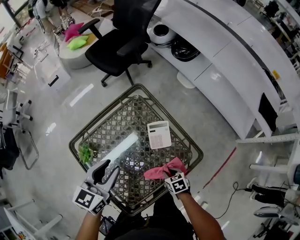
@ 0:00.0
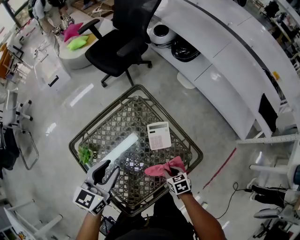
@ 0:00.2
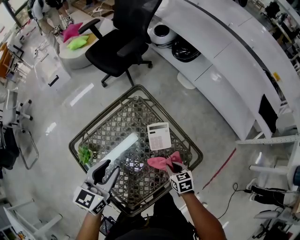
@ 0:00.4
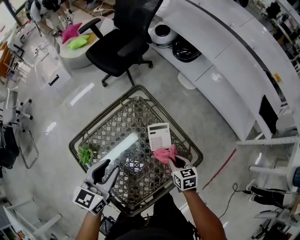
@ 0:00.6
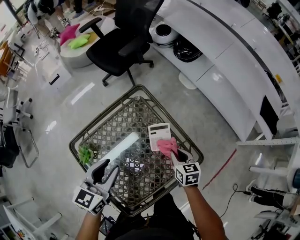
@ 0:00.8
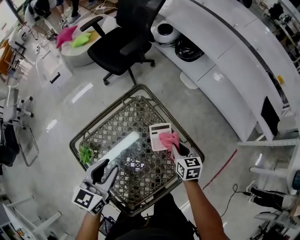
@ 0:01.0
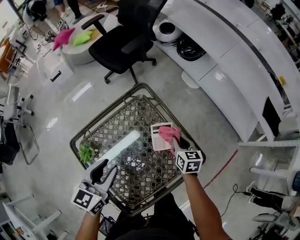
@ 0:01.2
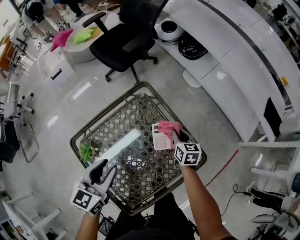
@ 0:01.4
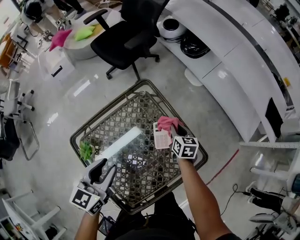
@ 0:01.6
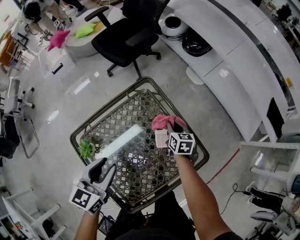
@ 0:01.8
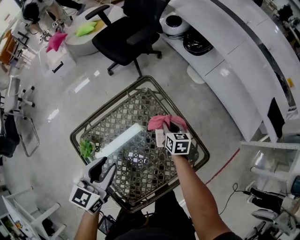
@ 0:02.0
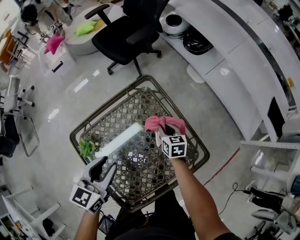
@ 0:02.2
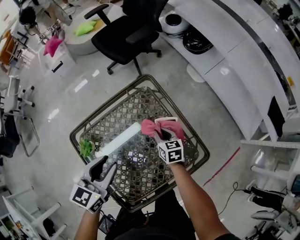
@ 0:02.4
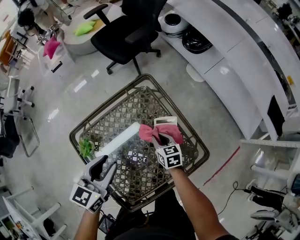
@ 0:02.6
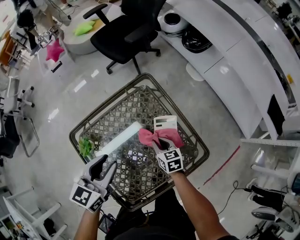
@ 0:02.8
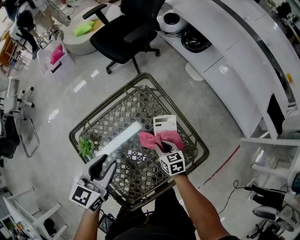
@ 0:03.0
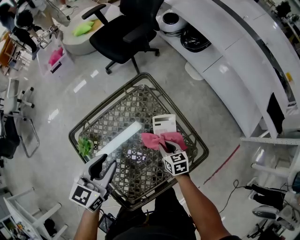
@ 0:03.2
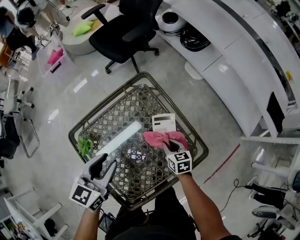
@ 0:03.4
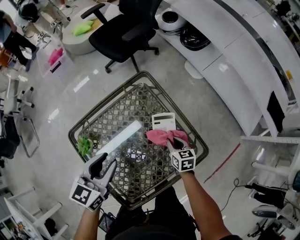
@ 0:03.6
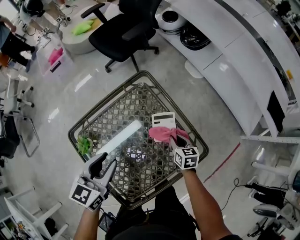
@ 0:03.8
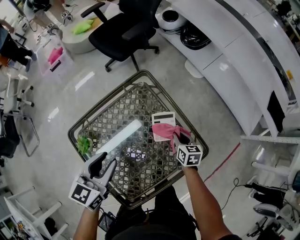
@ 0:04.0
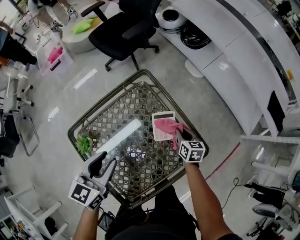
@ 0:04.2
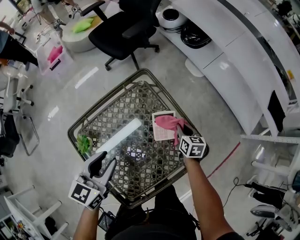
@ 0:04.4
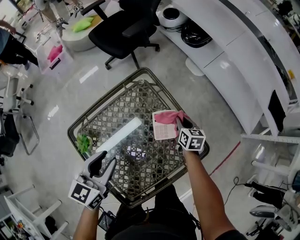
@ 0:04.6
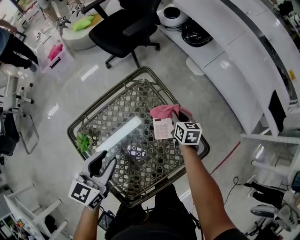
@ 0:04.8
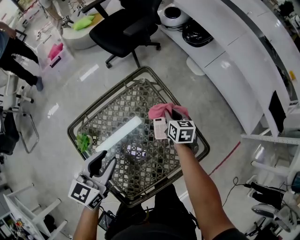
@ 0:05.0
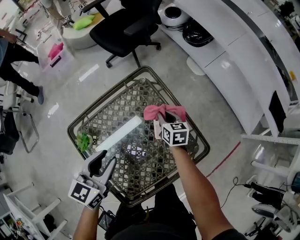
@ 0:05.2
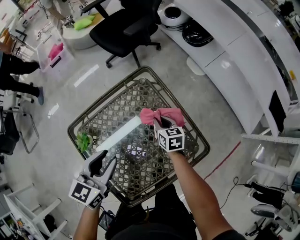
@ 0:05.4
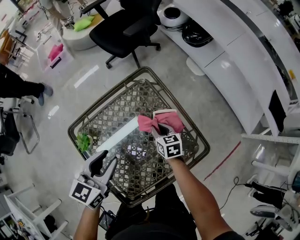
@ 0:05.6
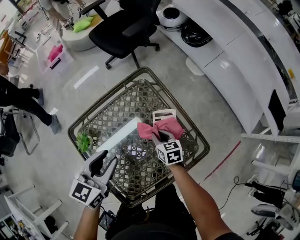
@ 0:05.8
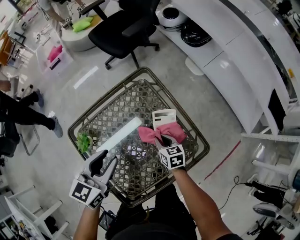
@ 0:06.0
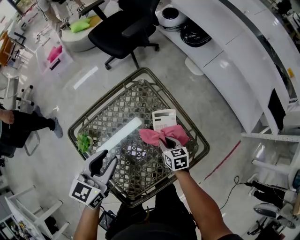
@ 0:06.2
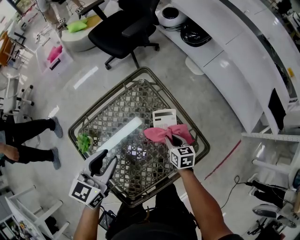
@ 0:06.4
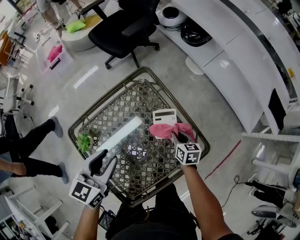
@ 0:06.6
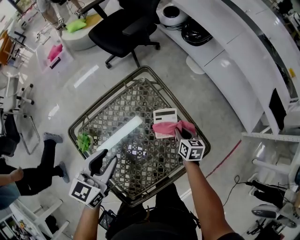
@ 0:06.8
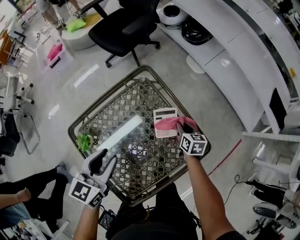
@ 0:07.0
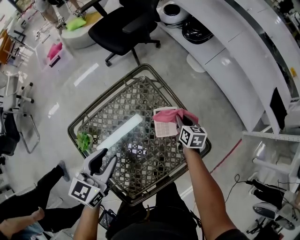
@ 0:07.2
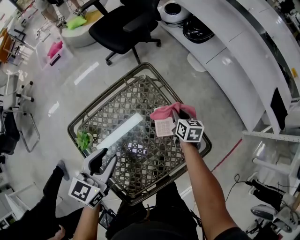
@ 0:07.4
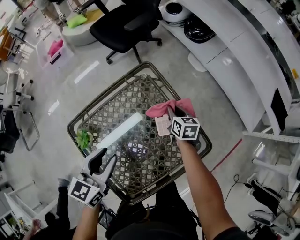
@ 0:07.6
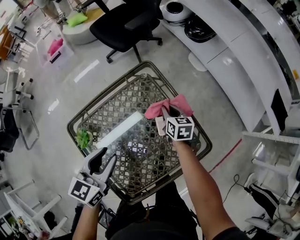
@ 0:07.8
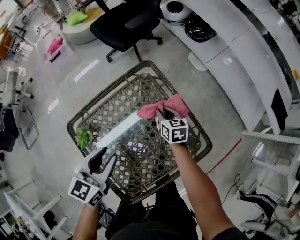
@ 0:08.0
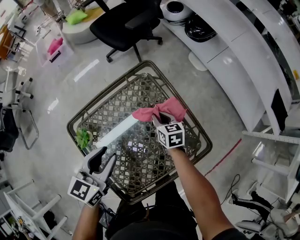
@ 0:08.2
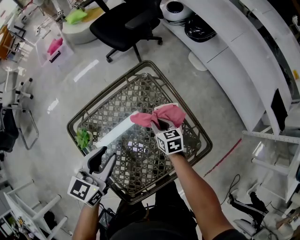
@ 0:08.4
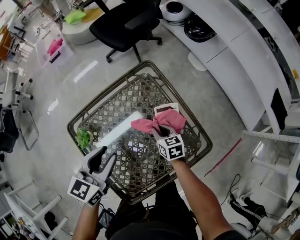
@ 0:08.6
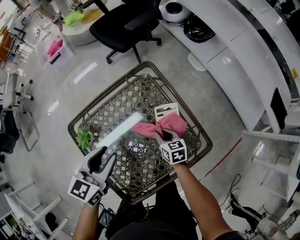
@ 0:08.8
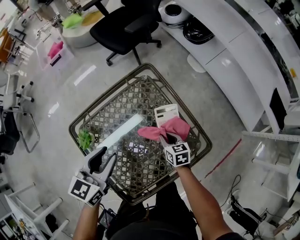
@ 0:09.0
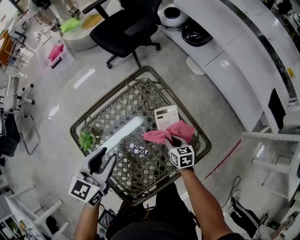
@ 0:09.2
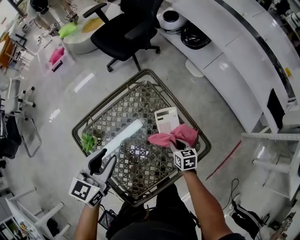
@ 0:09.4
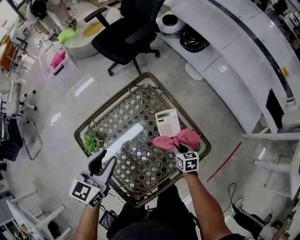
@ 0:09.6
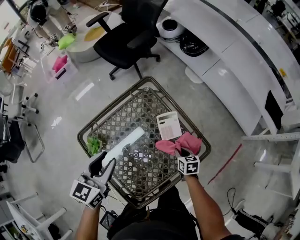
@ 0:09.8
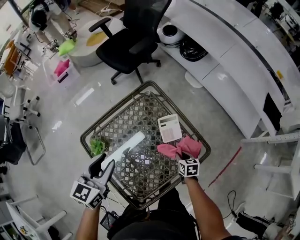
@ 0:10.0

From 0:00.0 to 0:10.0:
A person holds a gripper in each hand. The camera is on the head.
From 0:00.0 to 0:01.4: The right gripper goes about 25 cm forward and upward, and changes its angle by approximately 30 degrees.
From 0:01.4 to 0:02.8: The right gripper shifts about 15 cm to the left, backward and downward, and turns by approximately 20 degrees.
From 0:02.8 to 0:04.2: The right gripper shifts roughly 15 cm to the right, and swivels some 20 degrees.
From 0:04.2 to 0:05.8: The right gripper is displaced to the left by approximately 15 cm.
From 0:05.8 to 0:07.2: The right gripper is displaced to the right and forward by some 15 cm.
From 0:07.2 to 0:08.6: The right gripper moves to the left and backward, approximately 15 cm, and changes its angle by approximately 20 degrees.
From 0:08.6 to 0:10.0: The left gripper heads upward, covering approximately 5 cm, while the right gripper shifts some 15 cm to the right and backward.

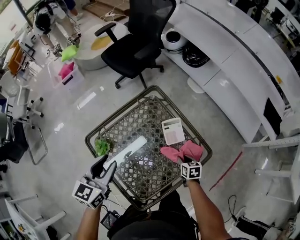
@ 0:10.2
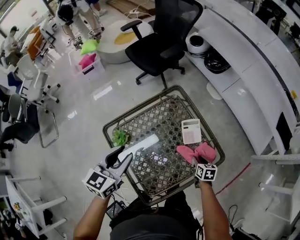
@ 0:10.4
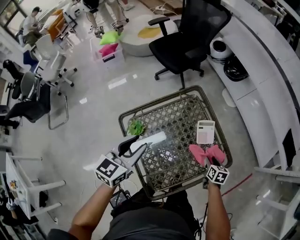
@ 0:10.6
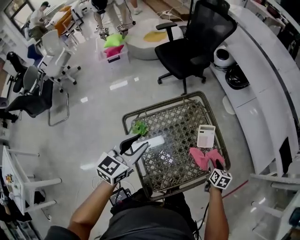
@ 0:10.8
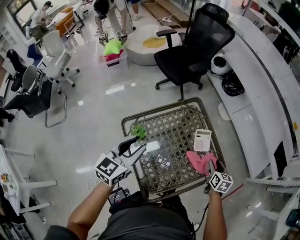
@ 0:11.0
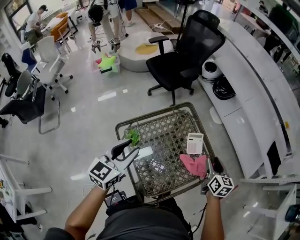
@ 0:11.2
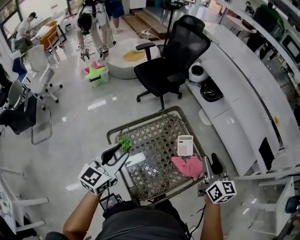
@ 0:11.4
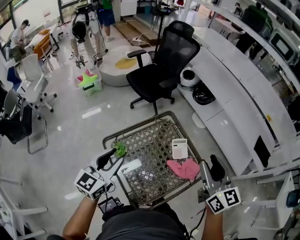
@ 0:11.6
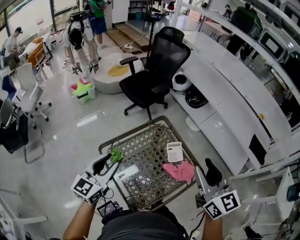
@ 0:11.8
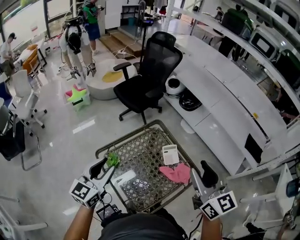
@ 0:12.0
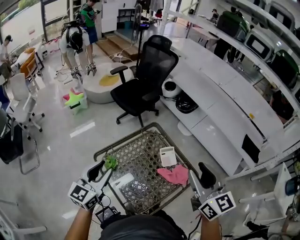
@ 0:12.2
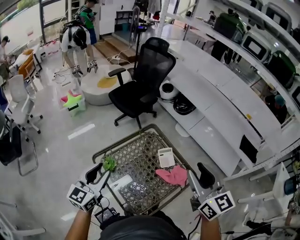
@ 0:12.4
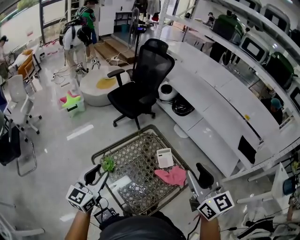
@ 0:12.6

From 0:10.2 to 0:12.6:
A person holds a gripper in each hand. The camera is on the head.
From 0:10.2 to 0:11.4: The right gripper moves upward, approximately 40 cm, tips its fingers upward by some 40 degrees, and opens its fingers. Meanwhile the left gripper shifts about 10 cm upward and to the left.
From 0:11.4 to 0:12.6: The right gripper is displaced upward and backward by roughly 15 cm.

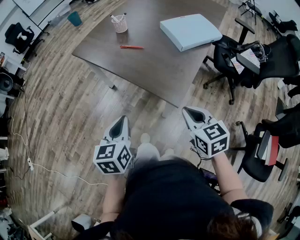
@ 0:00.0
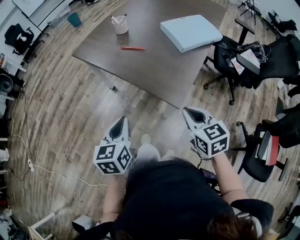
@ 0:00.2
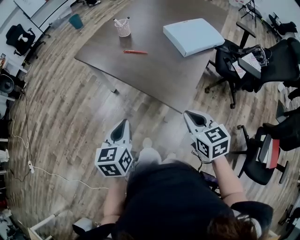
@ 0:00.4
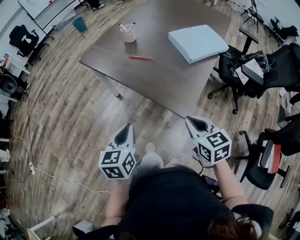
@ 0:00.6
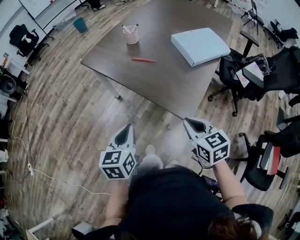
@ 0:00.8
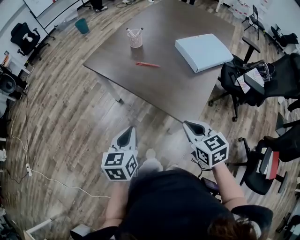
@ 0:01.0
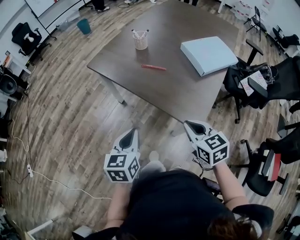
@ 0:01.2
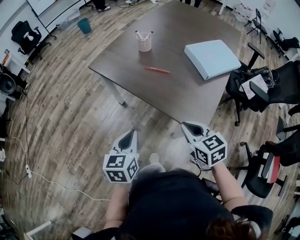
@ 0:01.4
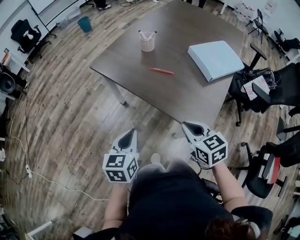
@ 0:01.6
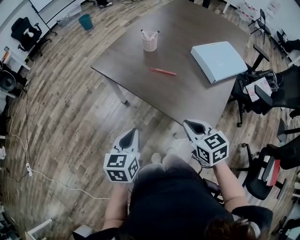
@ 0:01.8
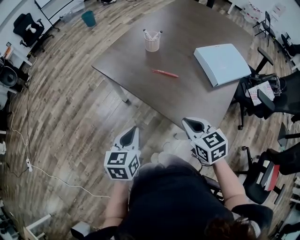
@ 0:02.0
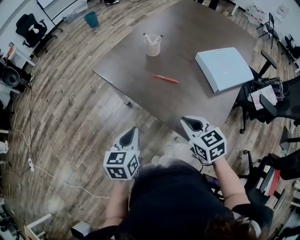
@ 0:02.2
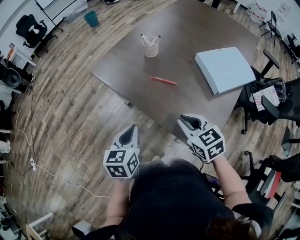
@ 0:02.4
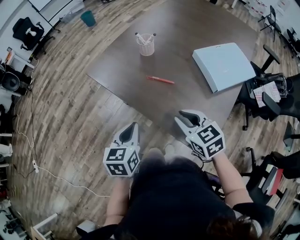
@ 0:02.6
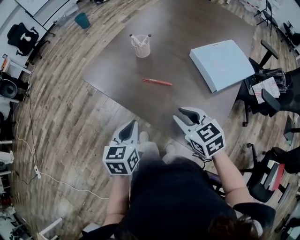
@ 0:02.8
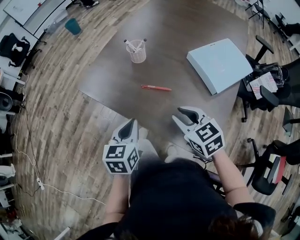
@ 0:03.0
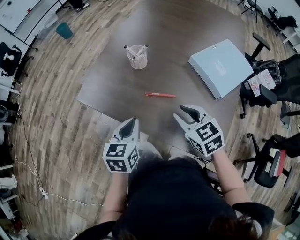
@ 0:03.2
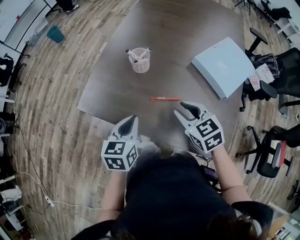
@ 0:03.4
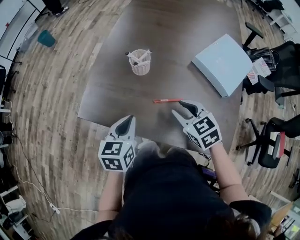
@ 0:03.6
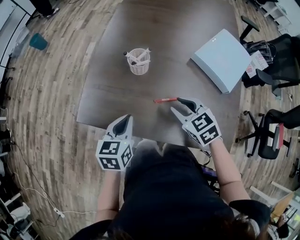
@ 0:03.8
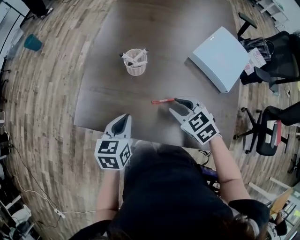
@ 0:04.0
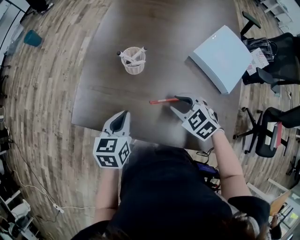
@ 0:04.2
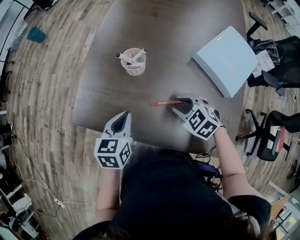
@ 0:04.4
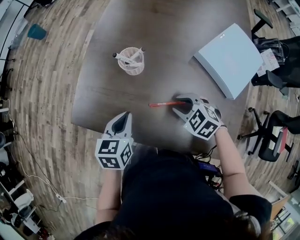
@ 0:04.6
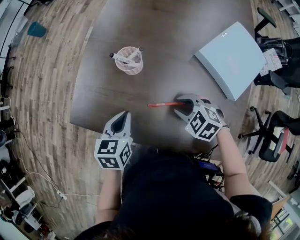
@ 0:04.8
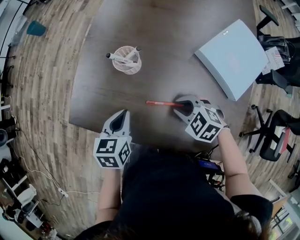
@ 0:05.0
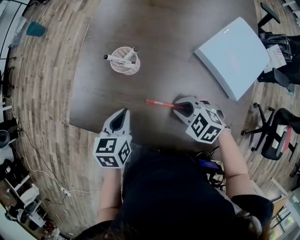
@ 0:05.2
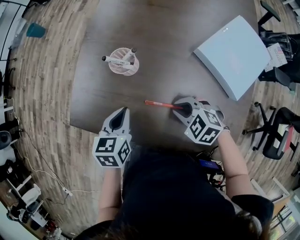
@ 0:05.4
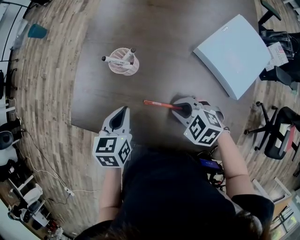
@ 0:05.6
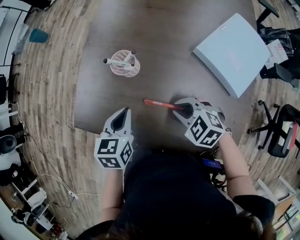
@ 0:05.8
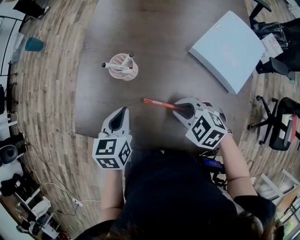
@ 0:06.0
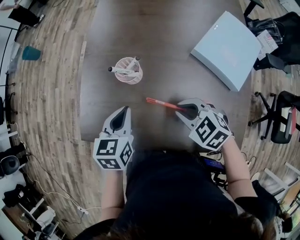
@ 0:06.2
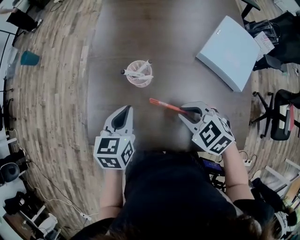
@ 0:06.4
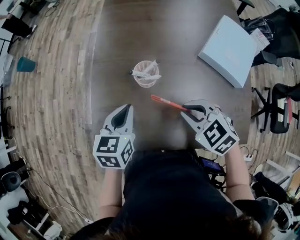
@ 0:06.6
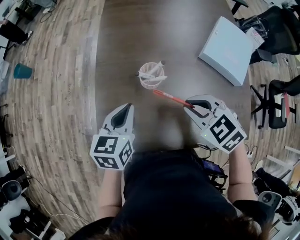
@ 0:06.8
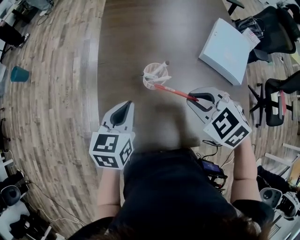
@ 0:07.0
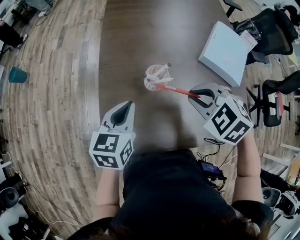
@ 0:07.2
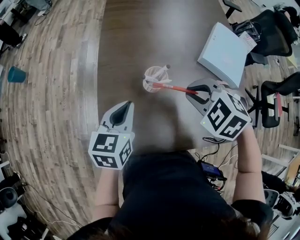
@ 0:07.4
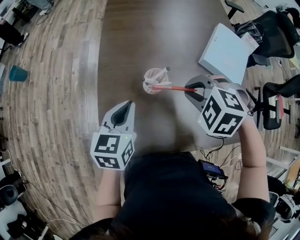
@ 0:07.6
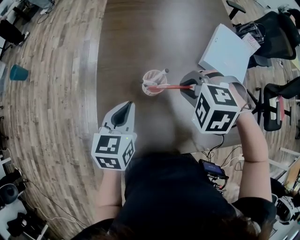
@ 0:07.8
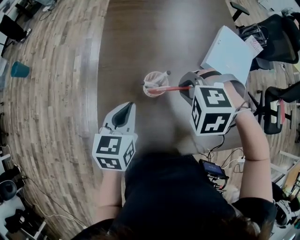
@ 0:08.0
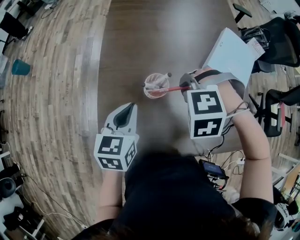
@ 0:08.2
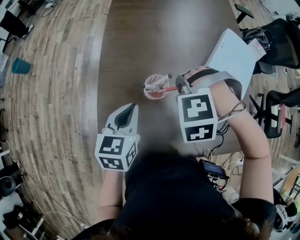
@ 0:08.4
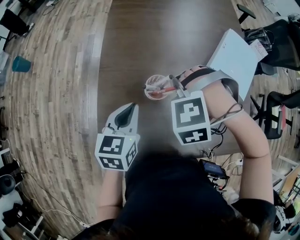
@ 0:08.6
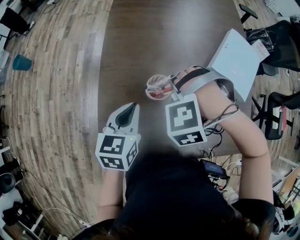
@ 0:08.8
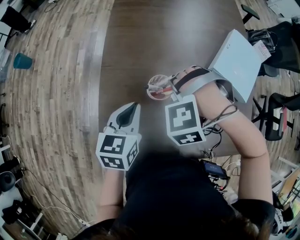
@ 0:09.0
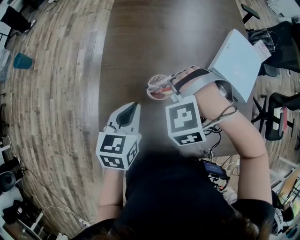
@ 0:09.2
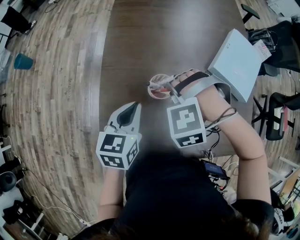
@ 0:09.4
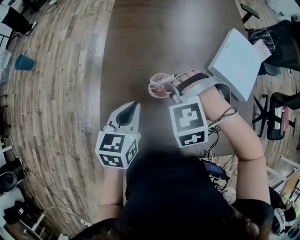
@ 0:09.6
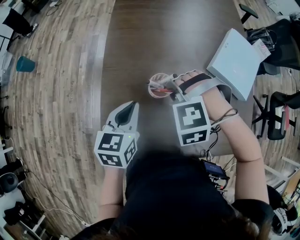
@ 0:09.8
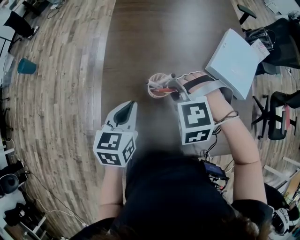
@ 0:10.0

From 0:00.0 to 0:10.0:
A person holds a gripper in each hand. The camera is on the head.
From 0:00.0 to 0:01.4: The left gripper shifts some 10 cm forward and to the left, while the right gripper travels to the left and forward by approximately 15 cm.
From 0:01.4 to 0:02.8: The grippers both shift forward by approximately 15 cm. The right gripper opens.
From 0:02.8 to 0:04.2: The left gripper moves forward, some 20 cm, and turns by roughly 20 degrees. The right gripper travels forward and downward by some 20 cm, and turns by some 20 degrees.
From 0:04.2 to 0:05.8: The right gripper closes up, while the left gripper moves roughly 5 cm.
From 0:05.8 to 0:07.2: The right gripper goes roughly 15 cm upward, and turns by about 30 degrees. The left gripper changes place by roughly 15 cm, and swivels roughly 30 degrees.
From 0:07.2 to 0:08.6: The right gripper moves about 10 cm, and rolls counterclockwise, seen from behind, by about 50 degrees.
From 0:08.6 to 0:10.0: The grippers make only small movements.

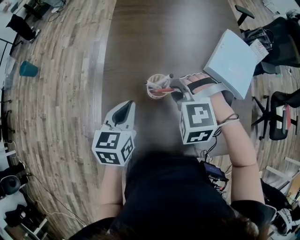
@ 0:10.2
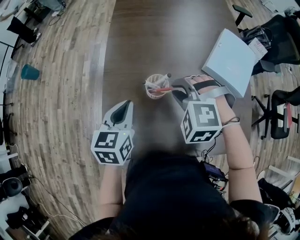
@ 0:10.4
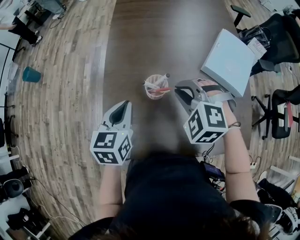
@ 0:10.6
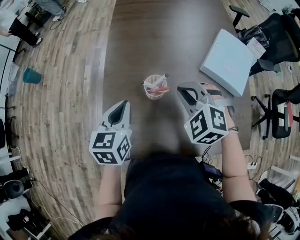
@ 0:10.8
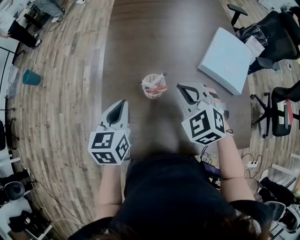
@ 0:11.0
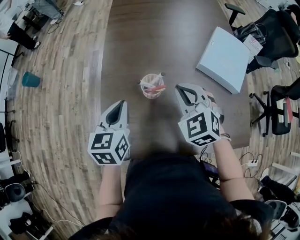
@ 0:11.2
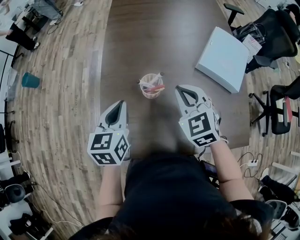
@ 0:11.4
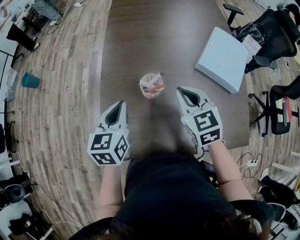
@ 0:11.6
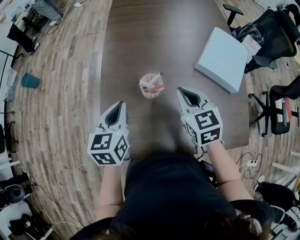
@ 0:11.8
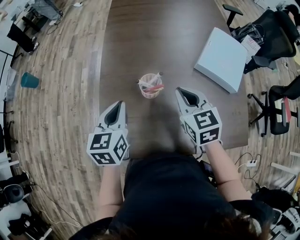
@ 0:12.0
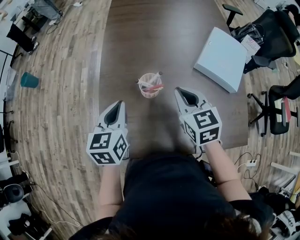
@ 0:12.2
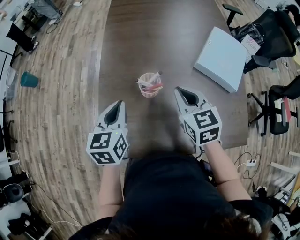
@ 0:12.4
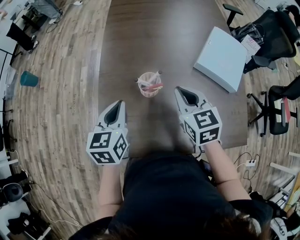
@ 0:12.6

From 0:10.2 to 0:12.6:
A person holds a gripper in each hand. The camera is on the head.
From 0:10.2 to 0:11.4: The right gripper ends up approximately 5 cm from where it was, rotates around the line of its fingers by roughly 50 degrees, clockwise from behind, and closes its fingers.
From 0:11.4 to 0:12.6: The right gripper swivels about 20 degrees.
